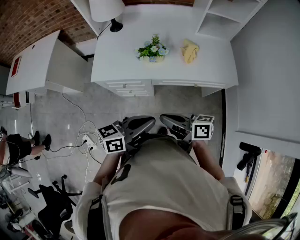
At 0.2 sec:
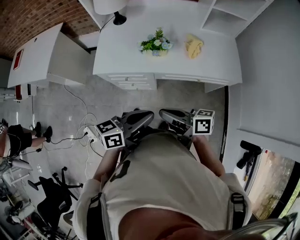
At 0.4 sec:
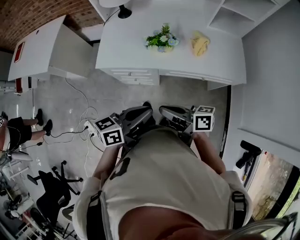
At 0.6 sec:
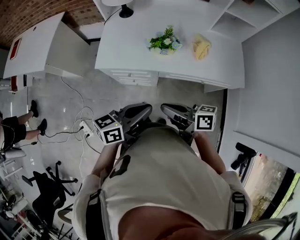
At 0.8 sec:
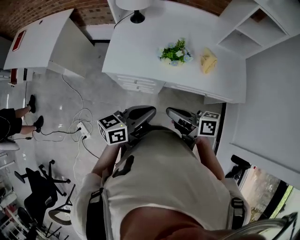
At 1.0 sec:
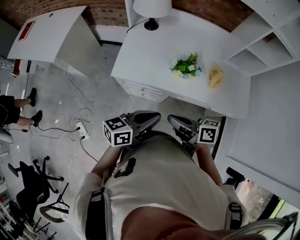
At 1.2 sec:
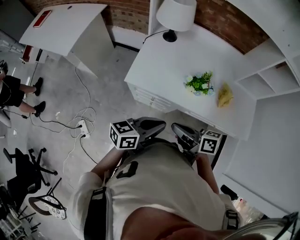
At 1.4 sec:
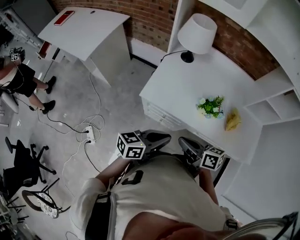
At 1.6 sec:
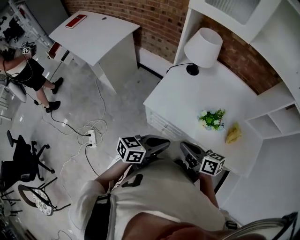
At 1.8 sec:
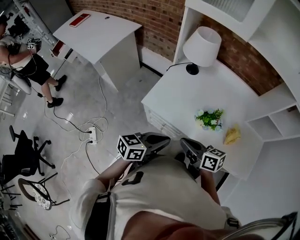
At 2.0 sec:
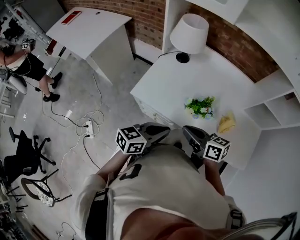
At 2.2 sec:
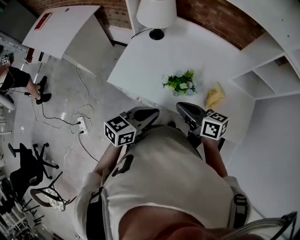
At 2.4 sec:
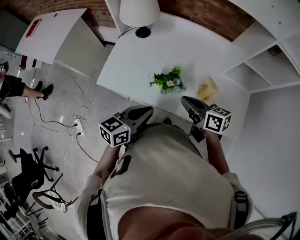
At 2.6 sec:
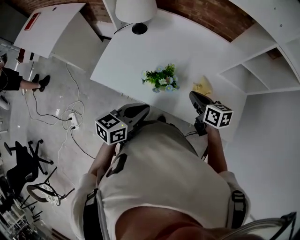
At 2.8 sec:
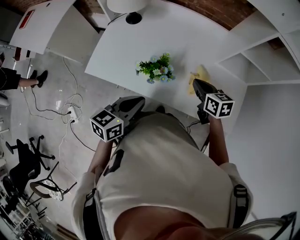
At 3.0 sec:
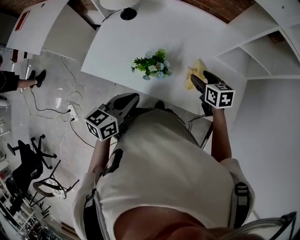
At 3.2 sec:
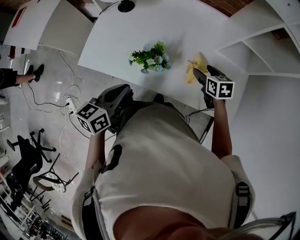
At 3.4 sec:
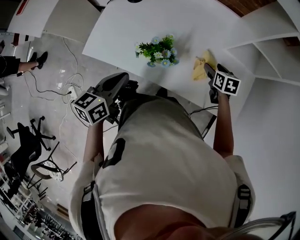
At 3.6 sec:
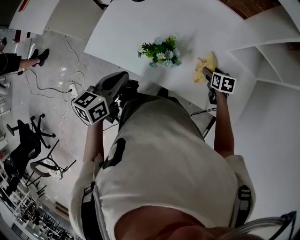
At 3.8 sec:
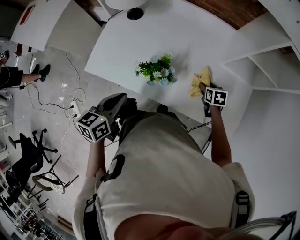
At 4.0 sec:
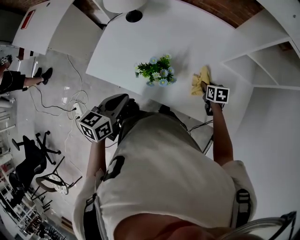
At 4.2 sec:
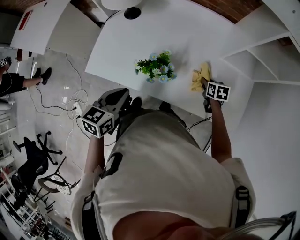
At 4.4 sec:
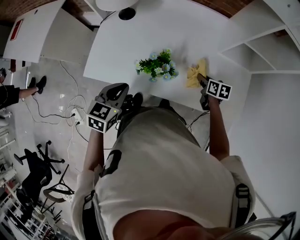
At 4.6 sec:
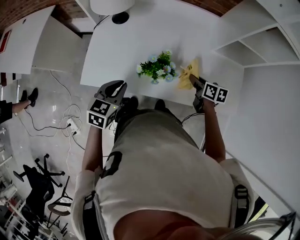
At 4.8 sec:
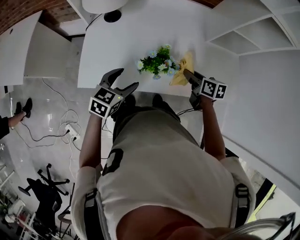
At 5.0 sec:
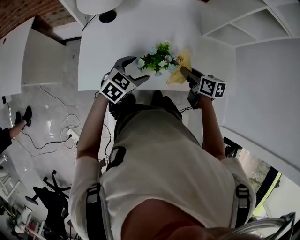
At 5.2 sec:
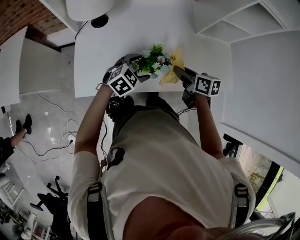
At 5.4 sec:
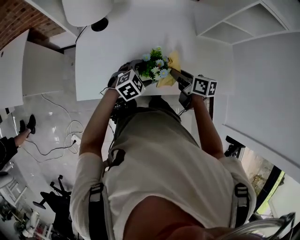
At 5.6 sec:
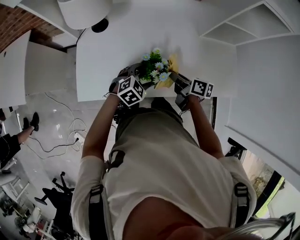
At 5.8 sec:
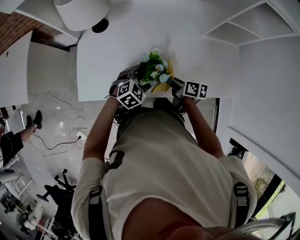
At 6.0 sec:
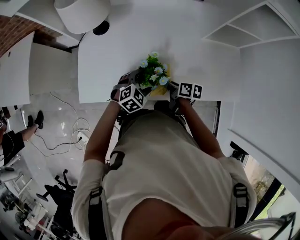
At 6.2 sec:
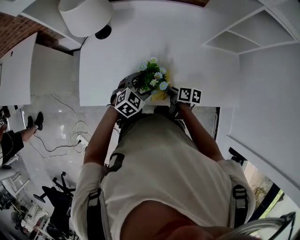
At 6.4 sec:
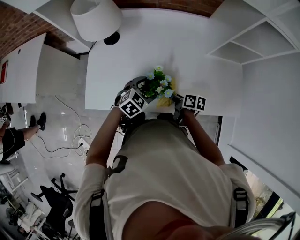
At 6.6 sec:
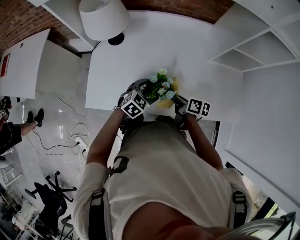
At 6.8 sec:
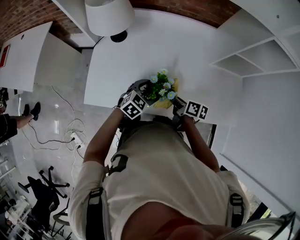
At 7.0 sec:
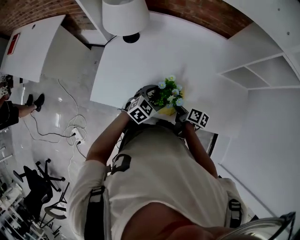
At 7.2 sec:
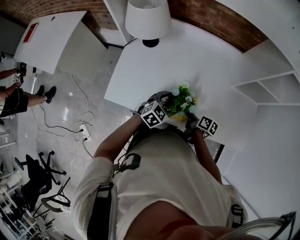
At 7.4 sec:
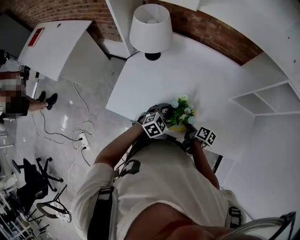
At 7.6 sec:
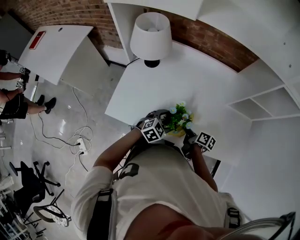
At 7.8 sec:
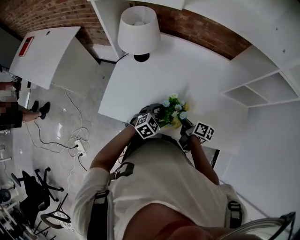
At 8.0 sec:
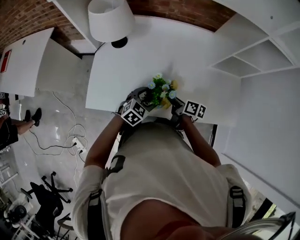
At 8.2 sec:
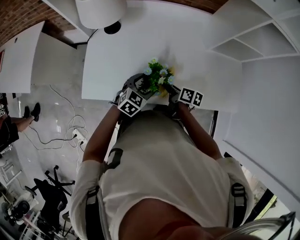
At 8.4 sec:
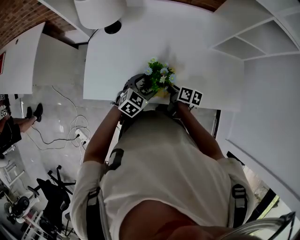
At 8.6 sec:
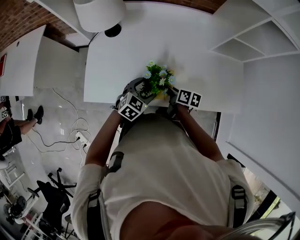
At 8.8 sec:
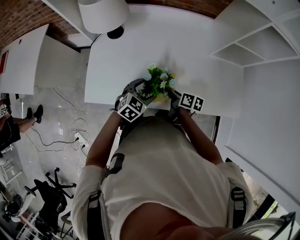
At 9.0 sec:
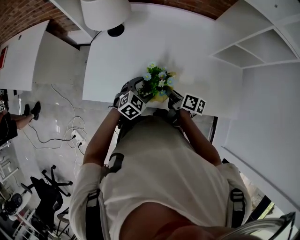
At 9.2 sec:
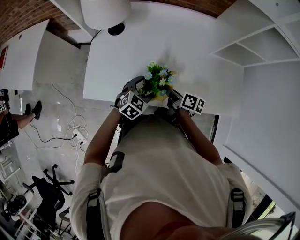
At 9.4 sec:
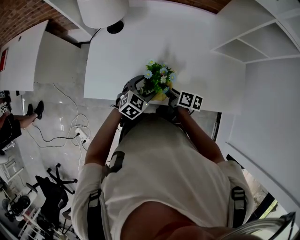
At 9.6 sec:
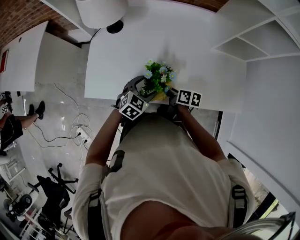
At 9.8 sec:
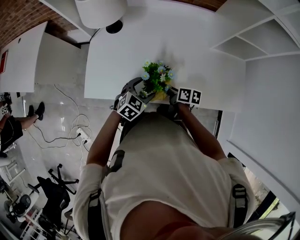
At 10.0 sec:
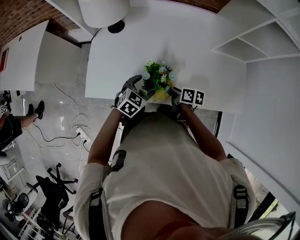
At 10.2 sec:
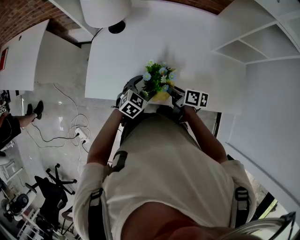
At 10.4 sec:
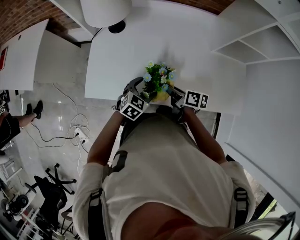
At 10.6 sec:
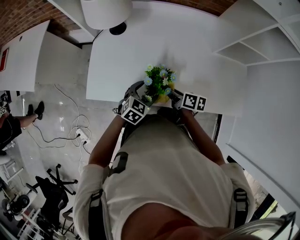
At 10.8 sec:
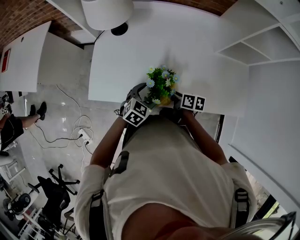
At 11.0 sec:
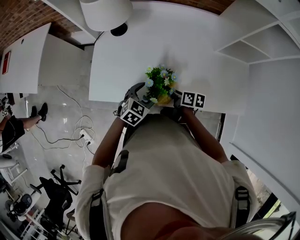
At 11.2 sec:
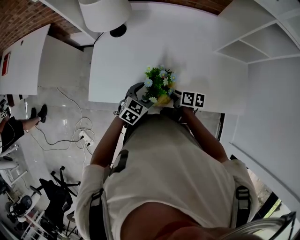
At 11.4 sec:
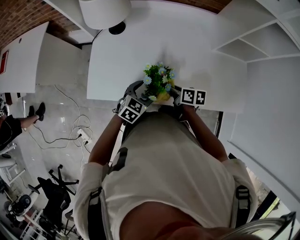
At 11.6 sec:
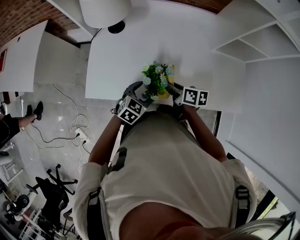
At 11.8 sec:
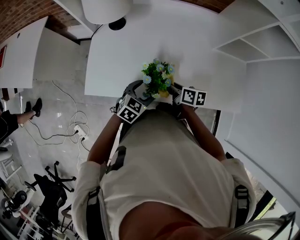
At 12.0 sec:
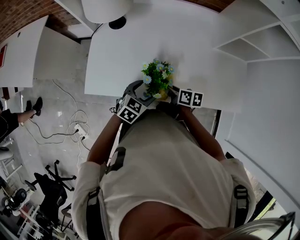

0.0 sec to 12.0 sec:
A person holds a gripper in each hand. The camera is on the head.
0.0 sec to 1.6 sec: Both grippers travel together forward and to the left, roughly 20 cm. The right gripper changes its angle by roughly 20 degrees.
1.6 sec to 3.0 sec: The left gripper is displaced to the right by about 20 cm. The right gripper moves to the right and forward, approximately 40 cm, rotates some 40 degrees, and opens its fingers.
3.0 sec to 4.4 sec: The right gripper moves downward, some 10 cm, rotates roughly 20 degrees, and closes up. Meanwhile the left gripper heads to the left, covering about 10 cm, and rotates about 30 degrees.
4.4 sec to 6.0 sec: The right gripper moves to the left and backward, roughly 15 cm, and swivels approximately 30 degrees. Meanwhile the left gripper goes some 20 cm downward, to the right and forward, rotates approximately 50 degrees, and opens.
7.6 sec to 9.0 sec: The right gripper goes up and down, approximately 5 cm each way, reversing 2 times.
9.0 sec to 10.4 sec: The grippers move only a little.
10.4 sec to 12.0 sec: The right gripper swings up and down, approximately 5 cm each way, with 2 reversals.

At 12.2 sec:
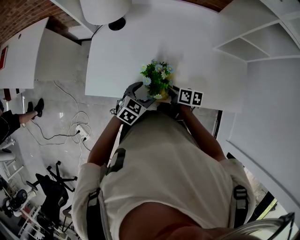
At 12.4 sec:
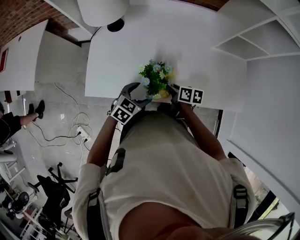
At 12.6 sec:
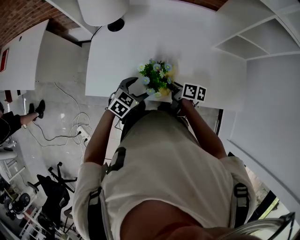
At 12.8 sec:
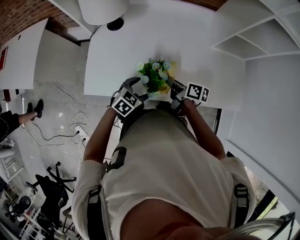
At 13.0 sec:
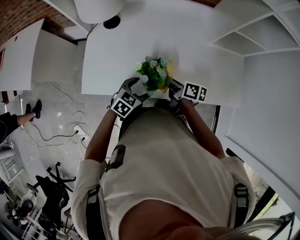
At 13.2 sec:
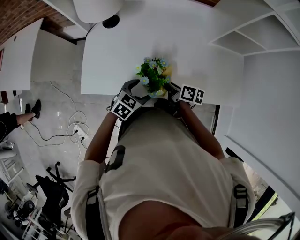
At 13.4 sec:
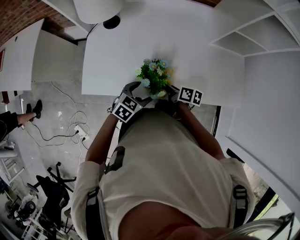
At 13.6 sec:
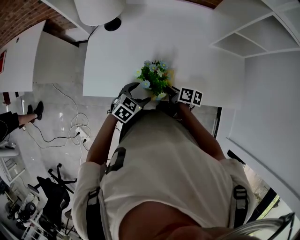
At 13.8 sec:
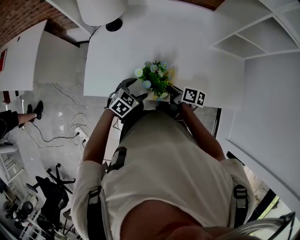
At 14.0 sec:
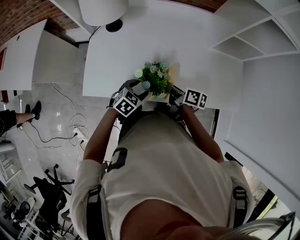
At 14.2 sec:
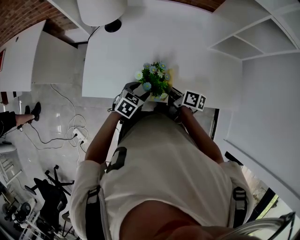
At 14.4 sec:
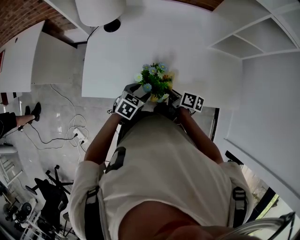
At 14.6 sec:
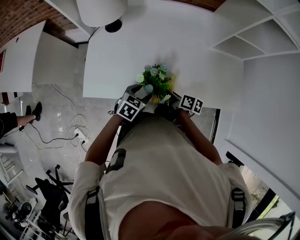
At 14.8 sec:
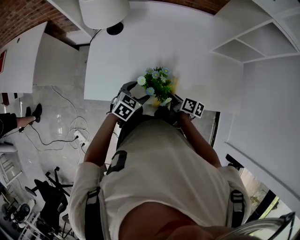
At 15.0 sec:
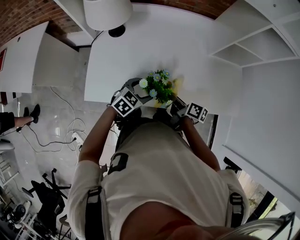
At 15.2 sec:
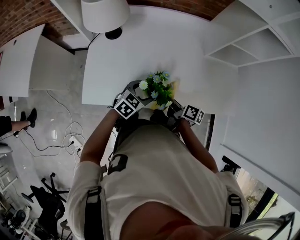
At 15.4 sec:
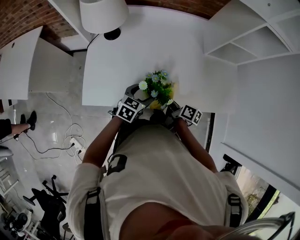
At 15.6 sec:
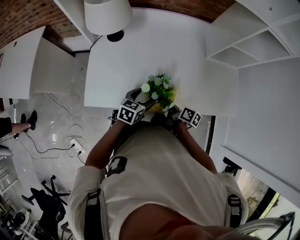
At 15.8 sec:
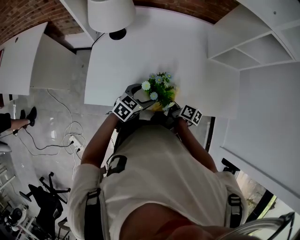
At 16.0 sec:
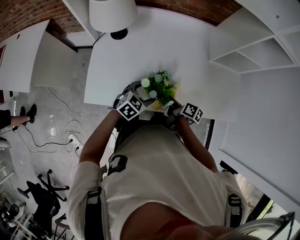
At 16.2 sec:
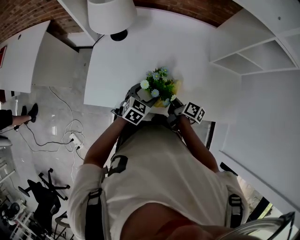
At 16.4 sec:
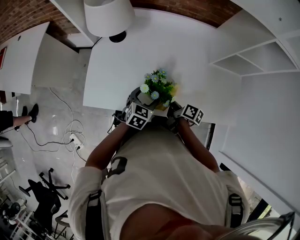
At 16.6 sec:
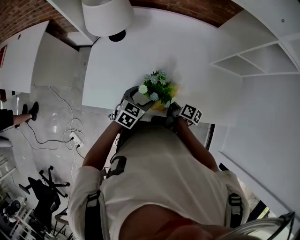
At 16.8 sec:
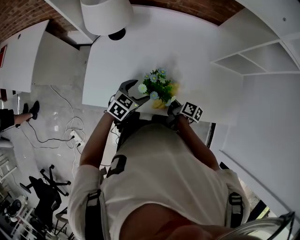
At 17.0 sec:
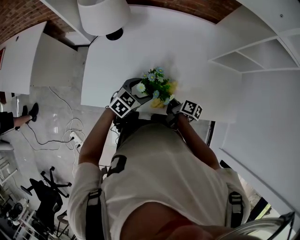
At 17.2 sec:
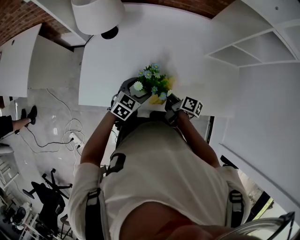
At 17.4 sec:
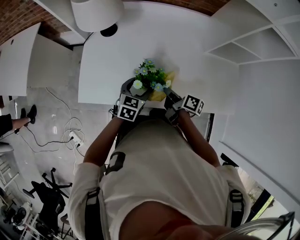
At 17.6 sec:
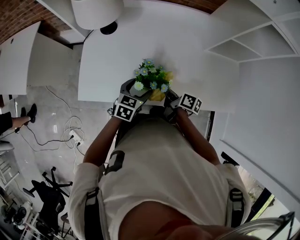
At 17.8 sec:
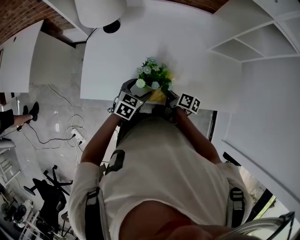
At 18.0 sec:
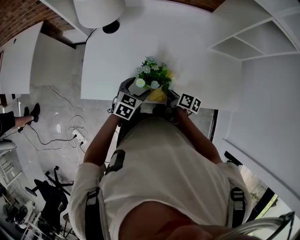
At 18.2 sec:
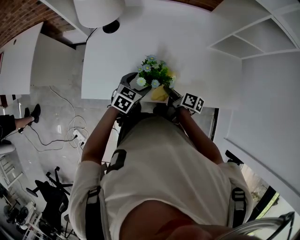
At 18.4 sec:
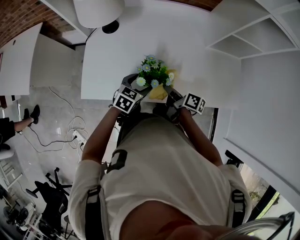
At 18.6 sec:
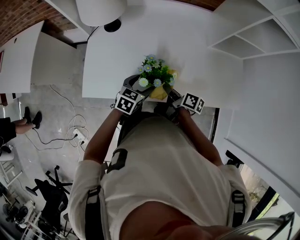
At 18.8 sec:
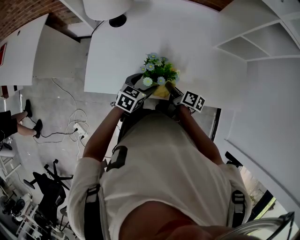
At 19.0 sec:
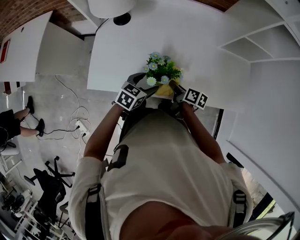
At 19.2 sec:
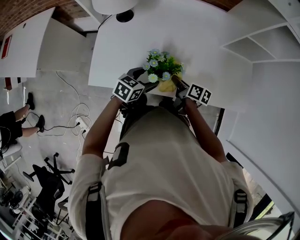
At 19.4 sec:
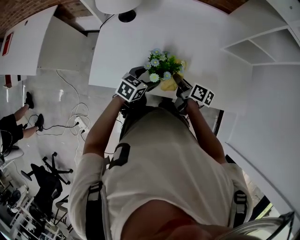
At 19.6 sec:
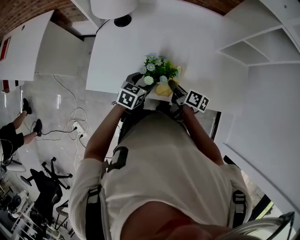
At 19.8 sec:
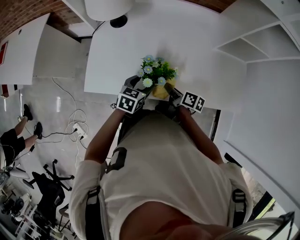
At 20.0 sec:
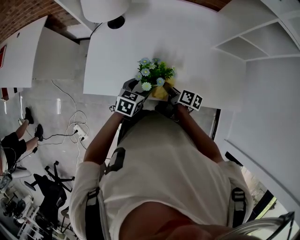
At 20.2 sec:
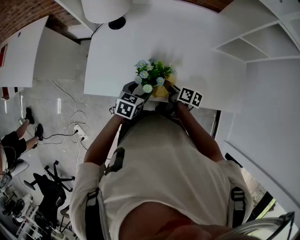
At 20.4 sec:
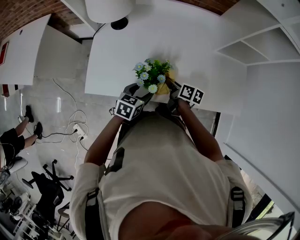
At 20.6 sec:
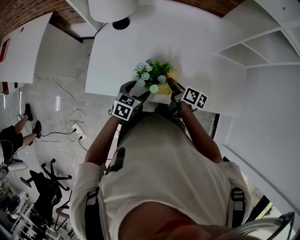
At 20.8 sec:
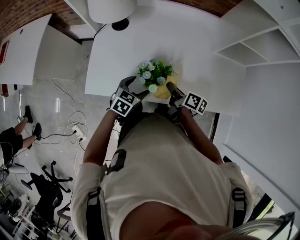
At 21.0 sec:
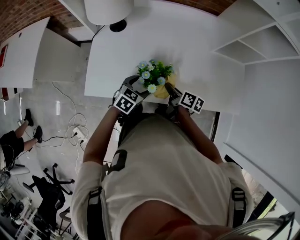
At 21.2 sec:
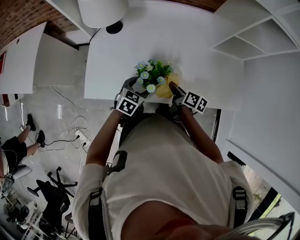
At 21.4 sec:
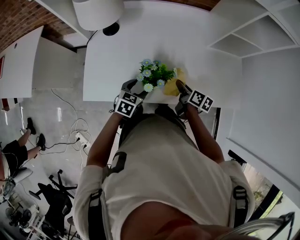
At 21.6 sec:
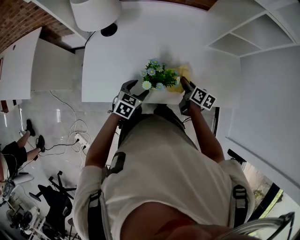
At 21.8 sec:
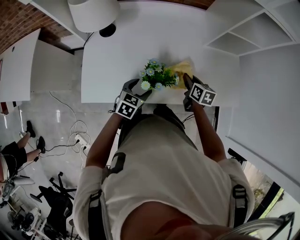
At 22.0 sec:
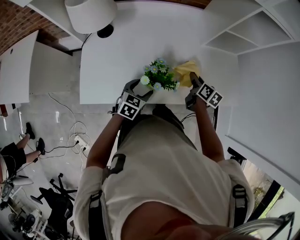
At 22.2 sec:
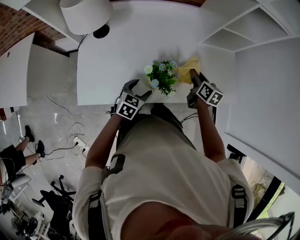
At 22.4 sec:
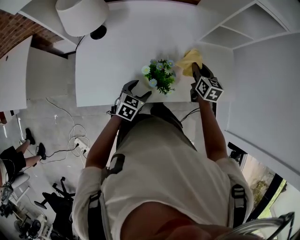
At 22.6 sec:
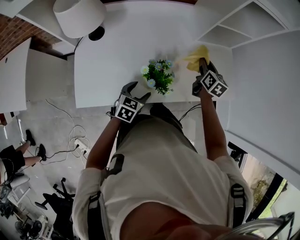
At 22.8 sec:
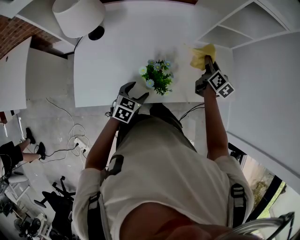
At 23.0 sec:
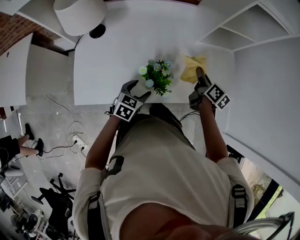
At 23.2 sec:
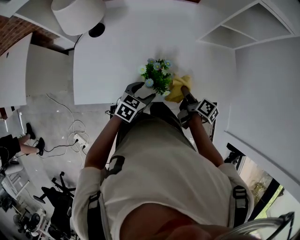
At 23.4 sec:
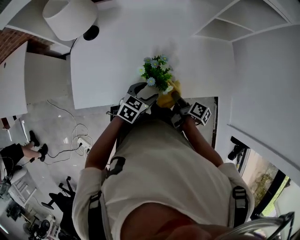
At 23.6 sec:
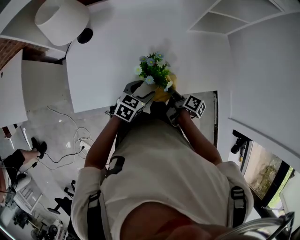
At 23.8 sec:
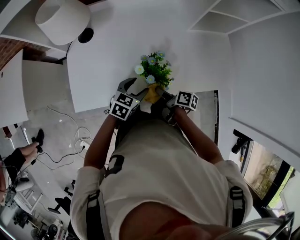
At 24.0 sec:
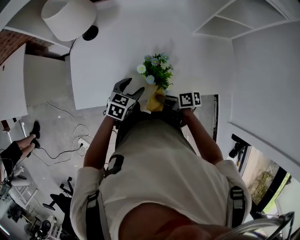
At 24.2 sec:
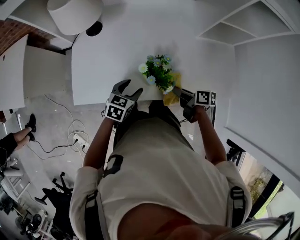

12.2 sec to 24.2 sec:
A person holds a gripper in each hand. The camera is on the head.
13.8 sec to 15.2 sec: The grippers make only small movements.
15.2 sec to 16.6 sec: The right gripper shifts by roughly 5 cm.
16.6 sec to 21.2 sec: There are only small adjustments of the grippers.
21.2 sec to 22.6 sec: The right gripper moves to the right, forward and upward, roughly 25 cm, and swivels about 40 degrees. The left gripper is displaced to the right by approximately 5 cm.
22.6 sec to 24.2 sec: The right gripper moves approximately 25 cm, and turns by about 60 degrees.
